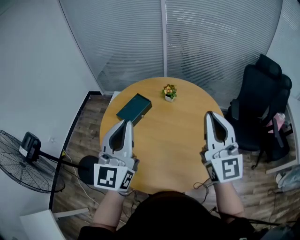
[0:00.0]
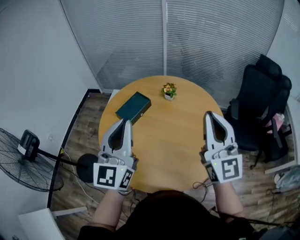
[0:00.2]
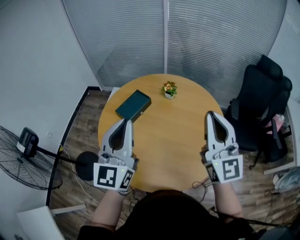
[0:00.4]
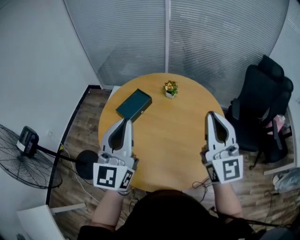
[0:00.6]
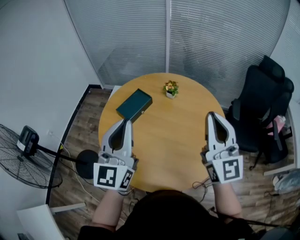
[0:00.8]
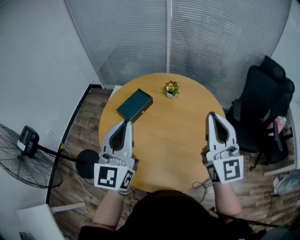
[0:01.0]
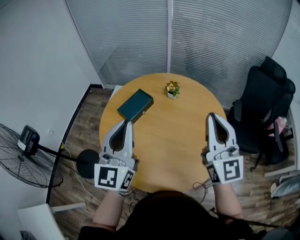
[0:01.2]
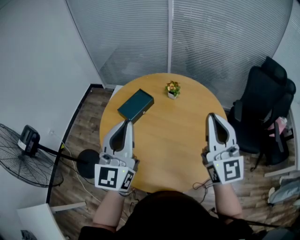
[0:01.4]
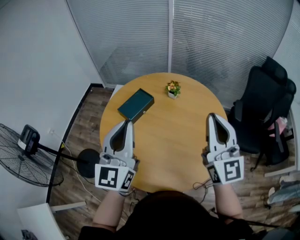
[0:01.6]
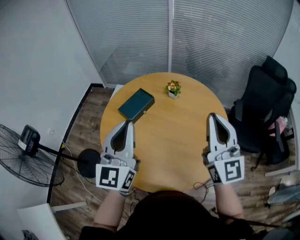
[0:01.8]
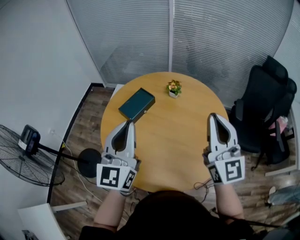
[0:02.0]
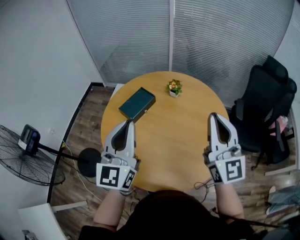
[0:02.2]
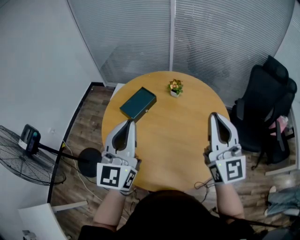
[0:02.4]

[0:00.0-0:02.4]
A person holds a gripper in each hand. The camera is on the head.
0:00.0 to 0:02.4: The grippers move only a little.

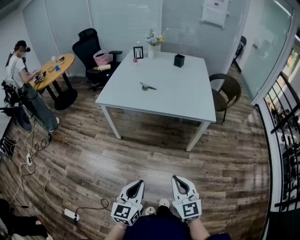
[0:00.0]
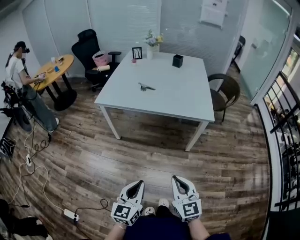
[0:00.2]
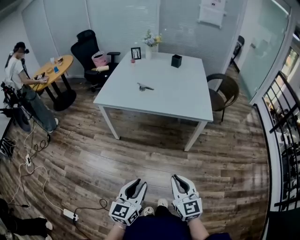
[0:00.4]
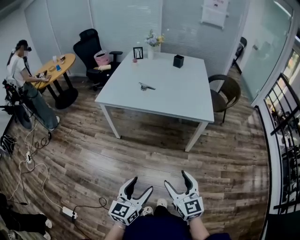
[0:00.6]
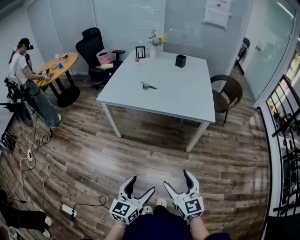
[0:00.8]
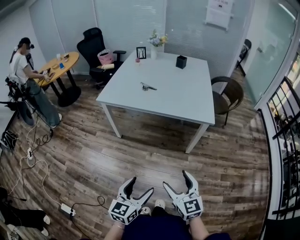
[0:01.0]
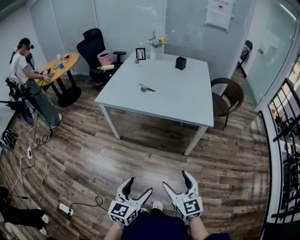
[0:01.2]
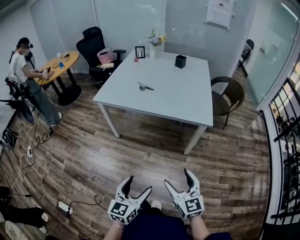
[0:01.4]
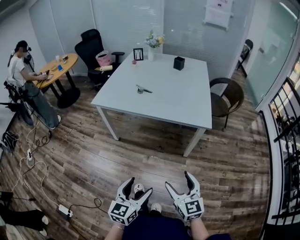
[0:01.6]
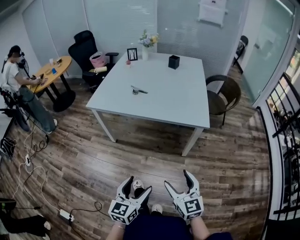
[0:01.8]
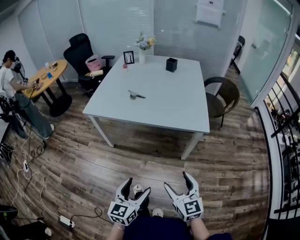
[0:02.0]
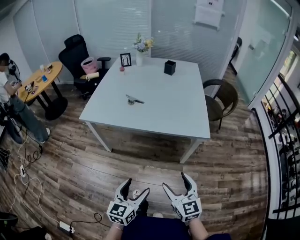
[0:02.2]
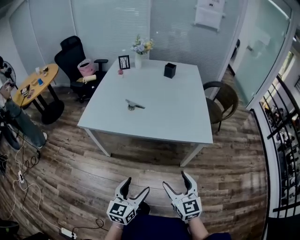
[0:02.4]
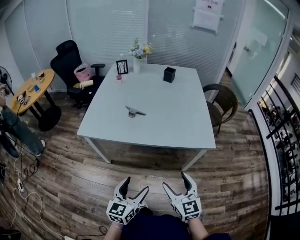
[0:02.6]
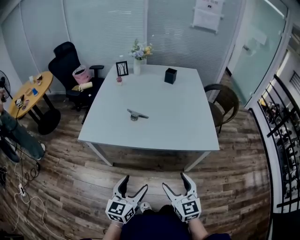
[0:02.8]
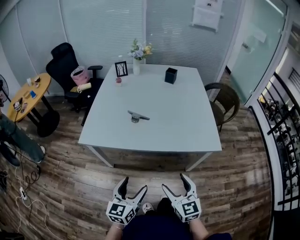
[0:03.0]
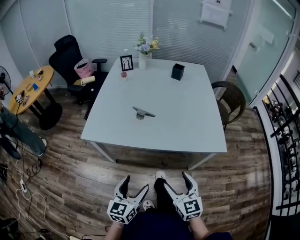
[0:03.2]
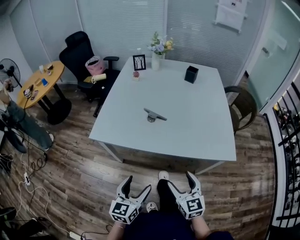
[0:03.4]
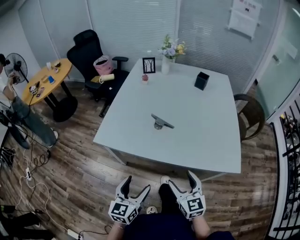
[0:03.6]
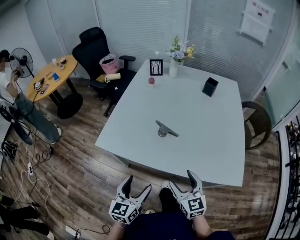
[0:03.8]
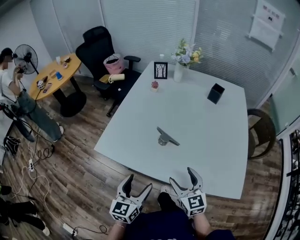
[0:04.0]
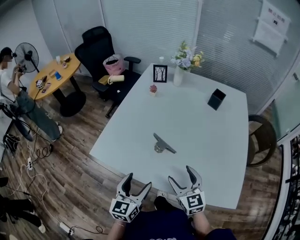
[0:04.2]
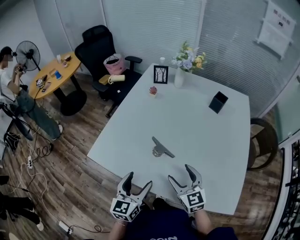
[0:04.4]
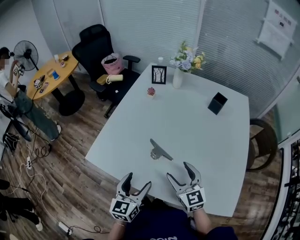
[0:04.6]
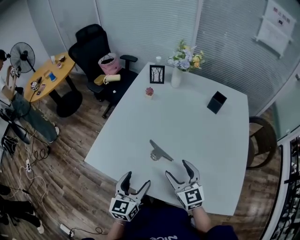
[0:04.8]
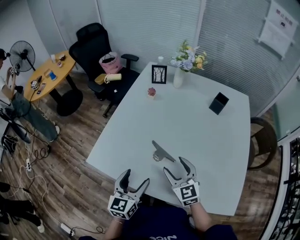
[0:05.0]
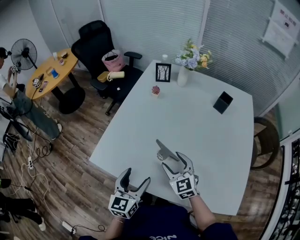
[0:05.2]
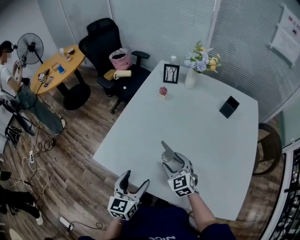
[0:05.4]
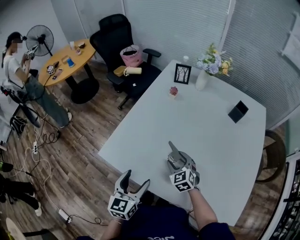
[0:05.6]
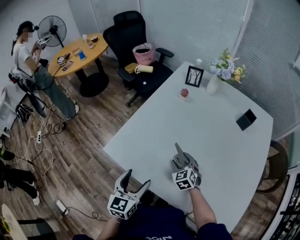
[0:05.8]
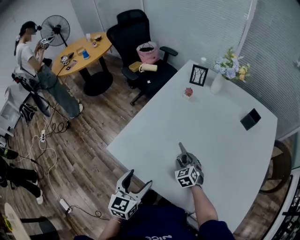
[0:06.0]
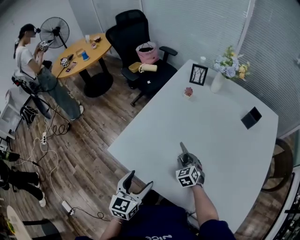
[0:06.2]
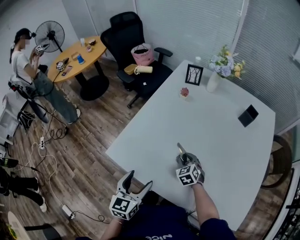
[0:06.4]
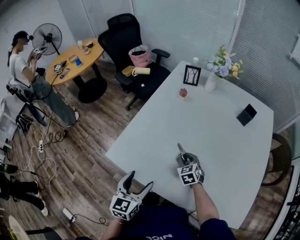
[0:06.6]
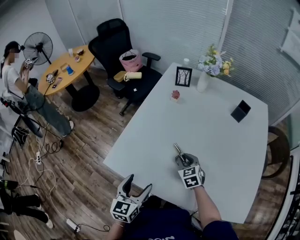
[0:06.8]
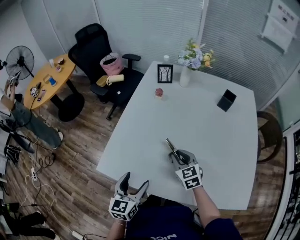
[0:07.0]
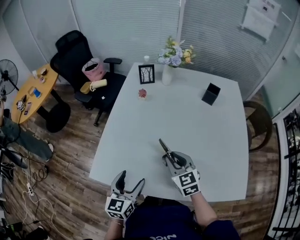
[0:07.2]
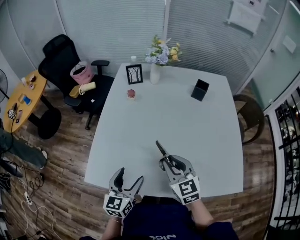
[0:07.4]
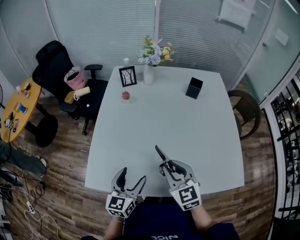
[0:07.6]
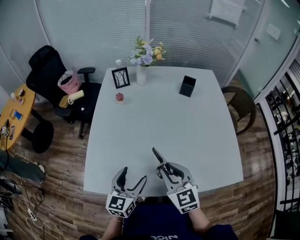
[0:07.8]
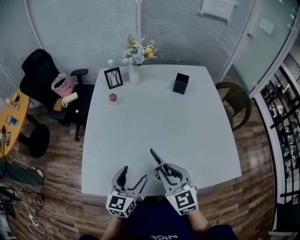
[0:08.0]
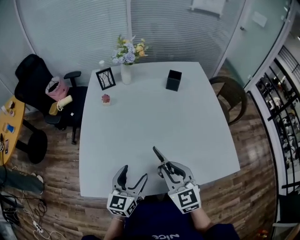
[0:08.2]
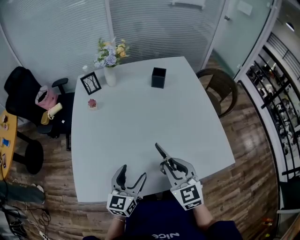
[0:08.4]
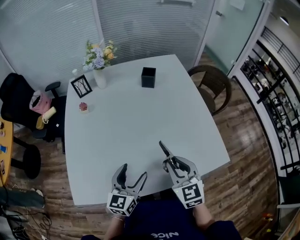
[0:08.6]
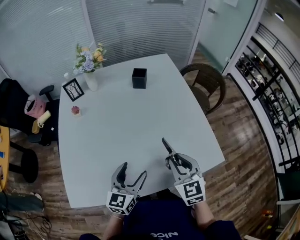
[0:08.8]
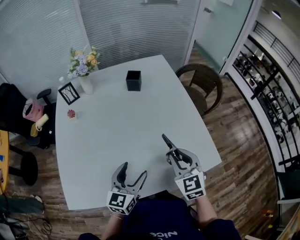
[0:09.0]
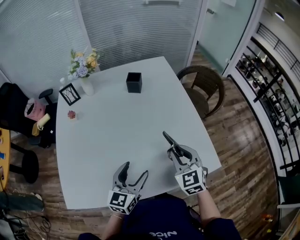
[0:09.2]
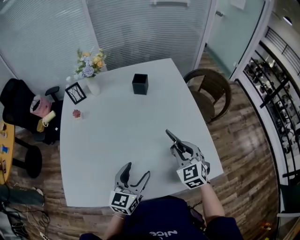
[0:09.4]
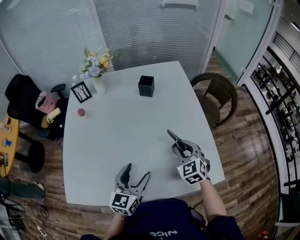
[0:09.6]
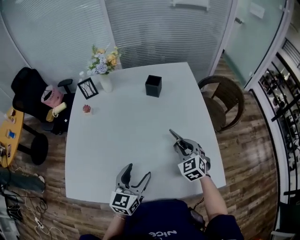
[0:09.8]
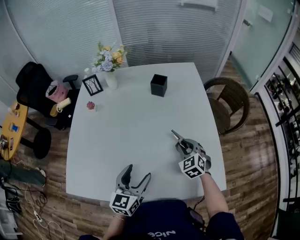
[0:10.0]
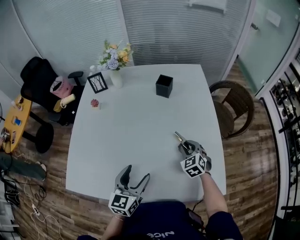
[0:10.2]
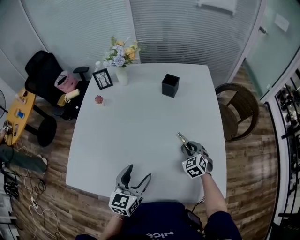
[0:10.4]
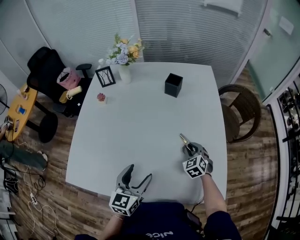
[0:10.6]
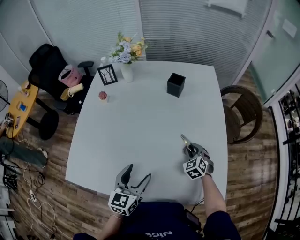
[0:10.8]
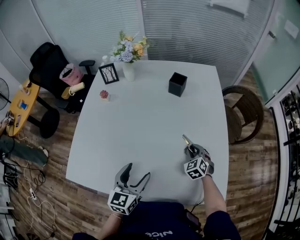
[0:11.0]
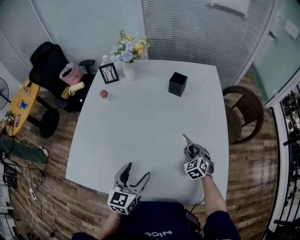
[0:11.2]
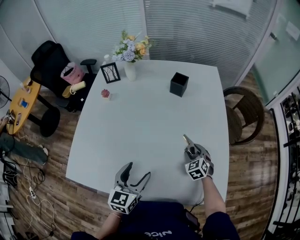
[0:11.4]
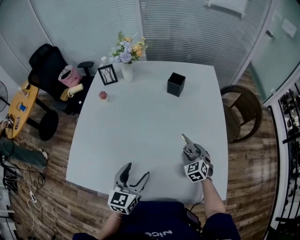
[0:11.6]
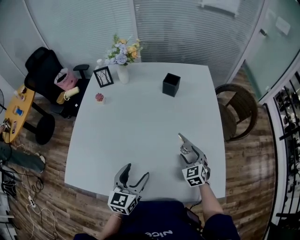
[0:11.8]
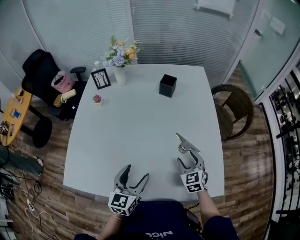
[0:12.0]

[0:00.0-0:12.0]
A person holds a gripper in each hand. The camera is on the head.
0:00.0 to 0:01.6: Both grippers move to the right, roughly 10 cm. The left gripper opens its fingers; the right gripper opens its fingers.
0:01.6 to 0:03.0: The two grippers go approximately 30 cm forward and to the left.
0:03.0 to 0:04.4: Both grippers move forward, roughly 30 cm. The left gripper rotates some 20 degrees, while the right gripper changes its angle by roughly 20 degrees.
0:04.4 to 0:06.0: The left gripper is displaced to the left by roughly 10 cm. Meanwhile the right gripper travels downward, forward and to the left by some 25 cm, and turns by approximately 30 degrees.
0:06.0 to 0:07.6: The left gripper shifts roughly 10 cm forward and to the right, and turns by about 30 degrees. The right gripper moves upward and backward, roughly 25 cm, changes its angle by some 30 degrees, and closes up.
0:07.6 to 0:09.0: The two grippers go approximately 20 cm to the right. The left gripper swivels some 20 degrees. The right gripper changes its angle by about 30 degrees.
0:09.0 to 0:10.4: The right gripper goes about 25 cm forward and downward, and swivels roughly 30 degrees.
0:10.4 to 0:12.0: The right gripper shifts approximately 5 cm backward, and opens.

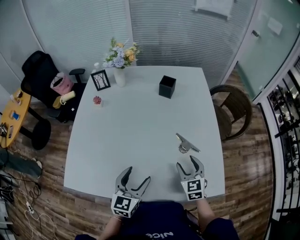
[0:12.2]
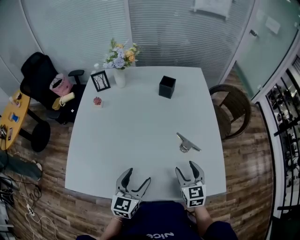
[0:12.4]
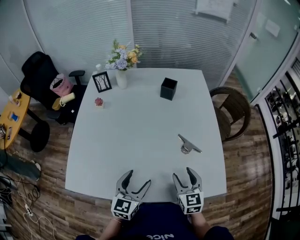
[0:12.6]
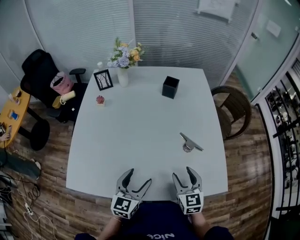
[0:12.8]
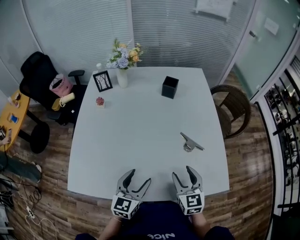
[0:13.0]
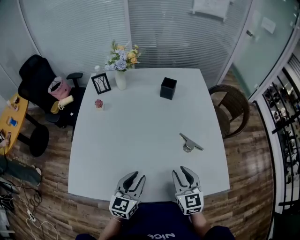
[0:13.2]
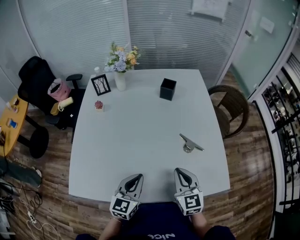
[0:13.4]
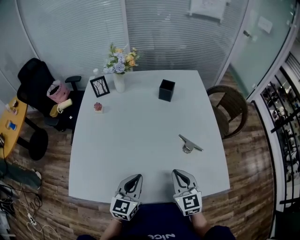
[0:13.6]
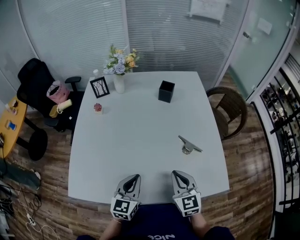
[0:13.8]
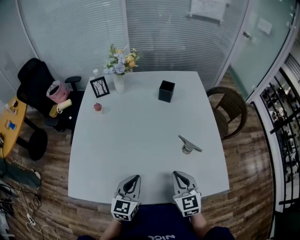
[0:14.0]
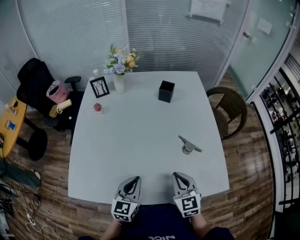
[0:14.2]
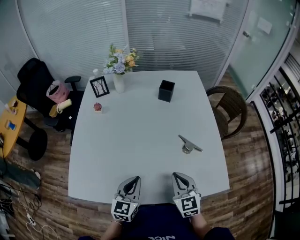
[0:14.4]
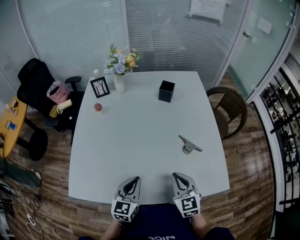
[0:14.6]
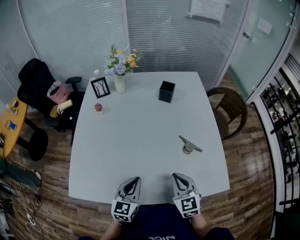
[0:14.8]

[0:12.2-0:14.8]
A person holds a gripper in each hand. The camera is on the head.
0:12.2 to 0:13.4: The left gripper closes its fingers. Meanwhile the right gripper moves to the left, upward and backward, roughly 10 cm, and closes.
0:13.4 to 0:14.8: The grippers move only a little.

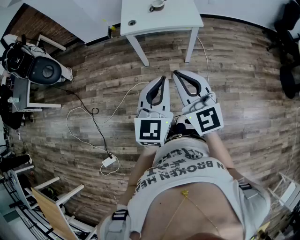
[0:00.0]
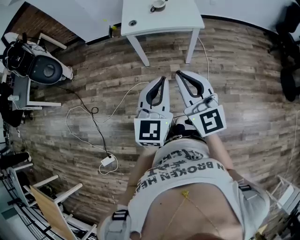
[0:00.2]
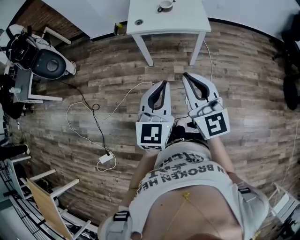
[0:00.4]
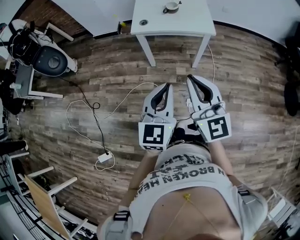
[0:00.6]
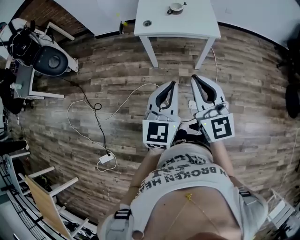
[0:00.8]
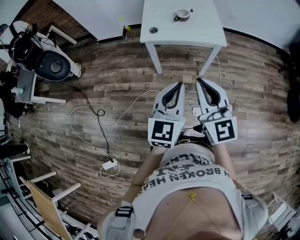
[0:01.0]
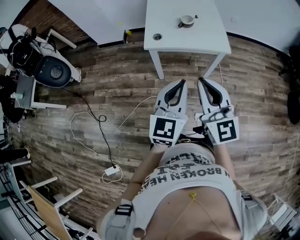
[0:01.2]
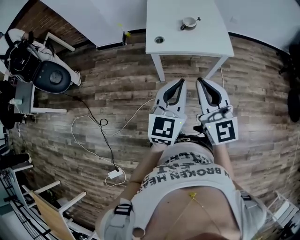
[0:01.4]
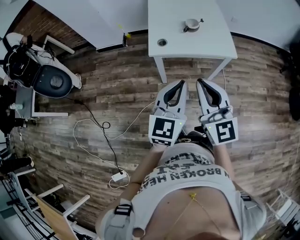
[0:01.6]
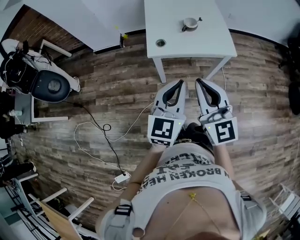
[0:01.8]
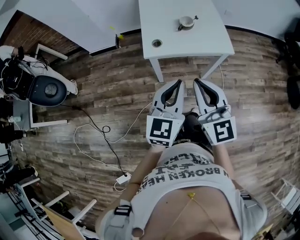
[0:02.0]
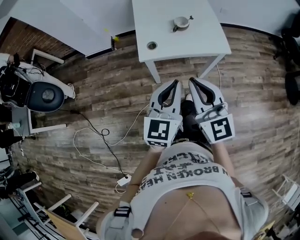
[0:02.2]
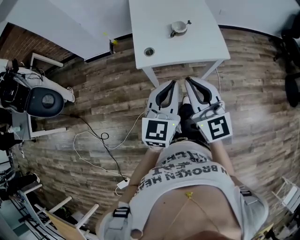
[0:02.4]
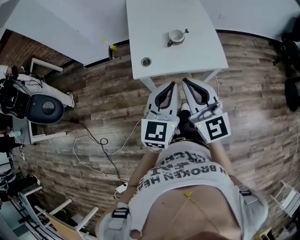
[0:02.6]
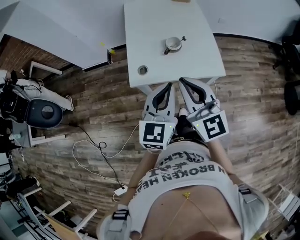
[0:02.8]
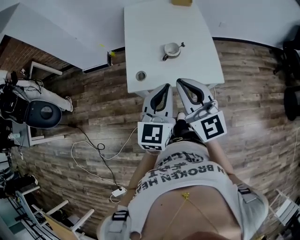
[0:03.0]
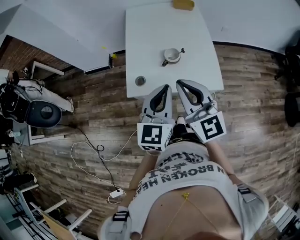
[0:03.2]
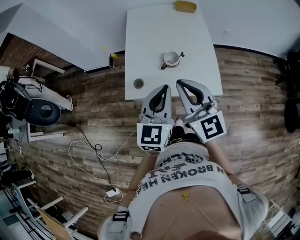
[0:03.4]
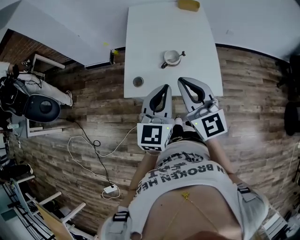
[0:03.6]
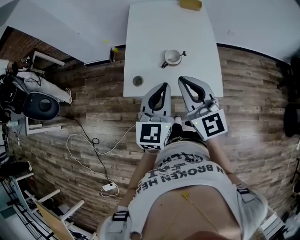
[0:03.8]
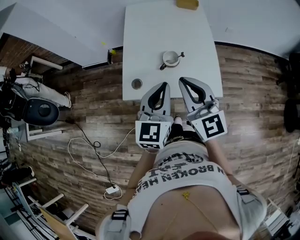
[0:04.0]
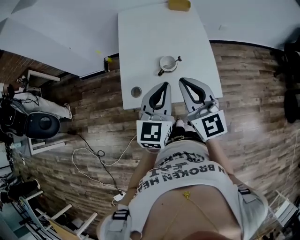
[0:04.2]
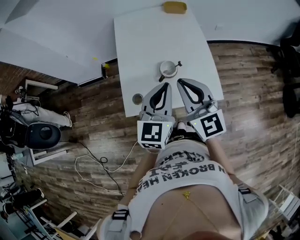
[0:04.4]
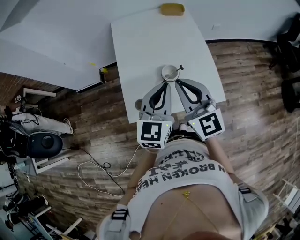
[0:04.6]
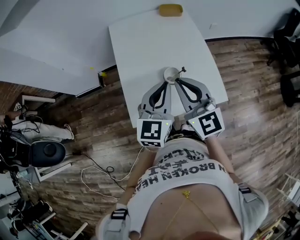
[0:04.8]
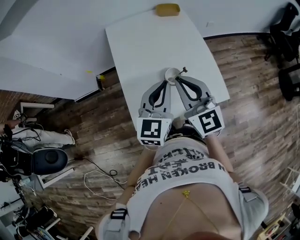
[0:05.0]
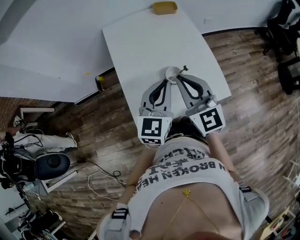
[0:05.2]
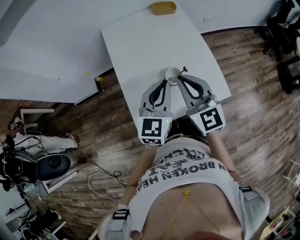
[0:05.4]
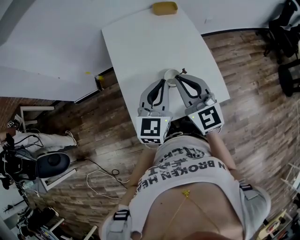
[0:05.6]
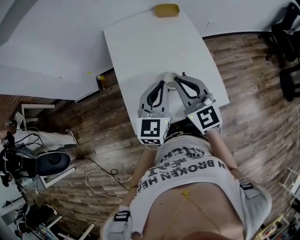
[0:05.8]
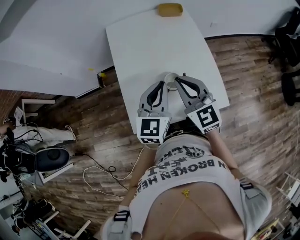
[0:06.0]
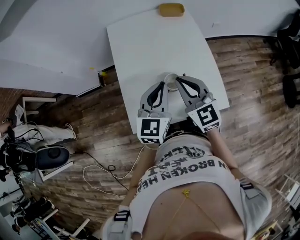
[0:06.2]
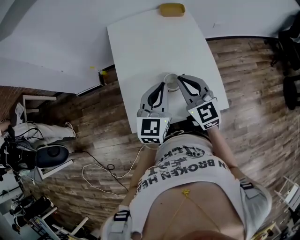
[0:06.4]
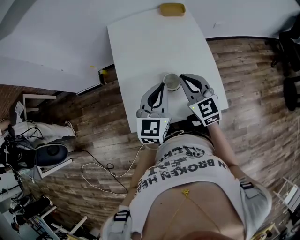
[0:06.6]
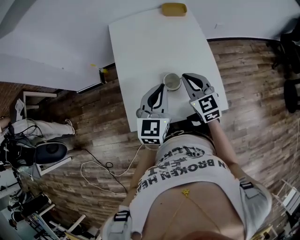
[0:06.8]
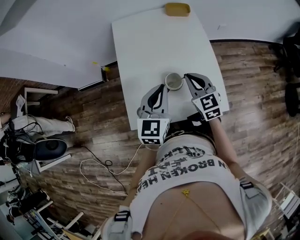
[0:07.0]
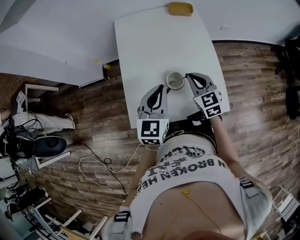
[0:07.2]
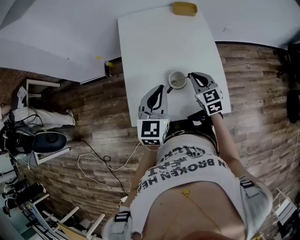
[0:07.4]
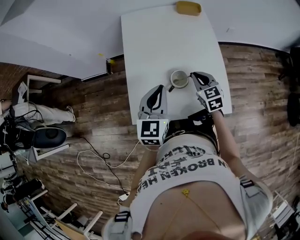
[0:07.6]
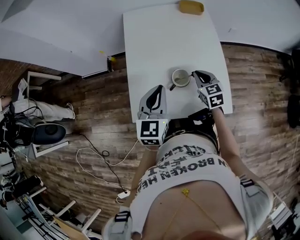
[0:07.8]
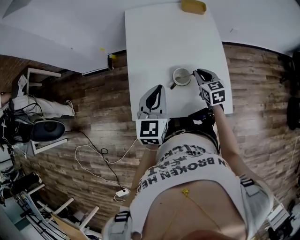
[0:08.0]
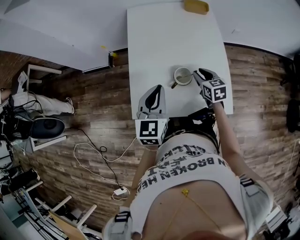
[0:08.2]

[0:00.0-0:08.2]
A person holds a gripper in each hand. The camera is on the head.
0:00.0 to 0:01.6: The grippers both shift forward and to the left by approximately 25 cm.
0:01.6 to 0:03.2: The grippers both shift forward by some 25 cm.
0:03.2 to 0:05.0: The two grippers go some 20 cm forward.
0:05.0 to 0:06.6: The left gripper goes approximately 5 cm forward. Meanwhile the right gripper is displaced downward, forward and to the right by approximately 15 cm.
0:06.6 to 0:08.2: The left gripper heads to the left, covering approximately 5 cm. The right gripper heads downward, covering roughly 15 cm, rotates some 30 degrees, and opens.
